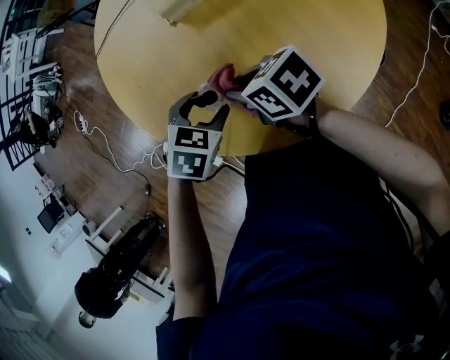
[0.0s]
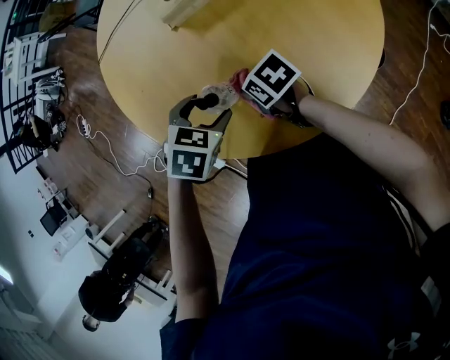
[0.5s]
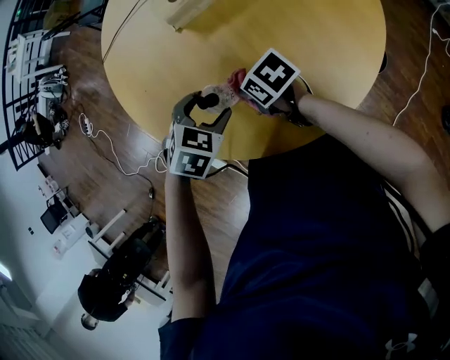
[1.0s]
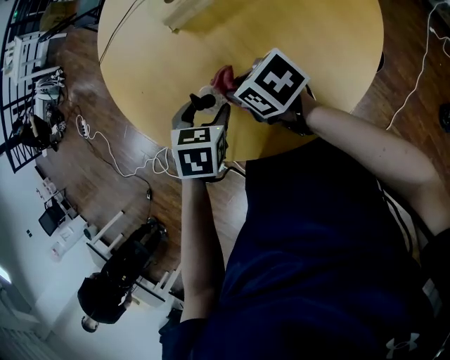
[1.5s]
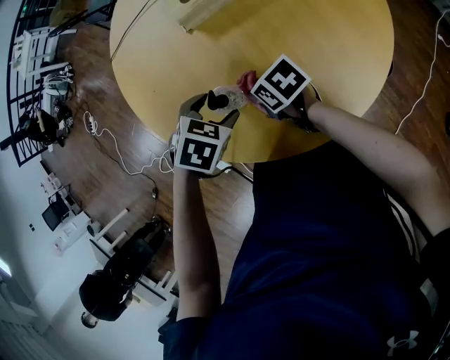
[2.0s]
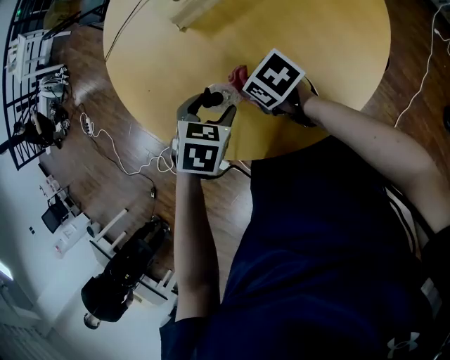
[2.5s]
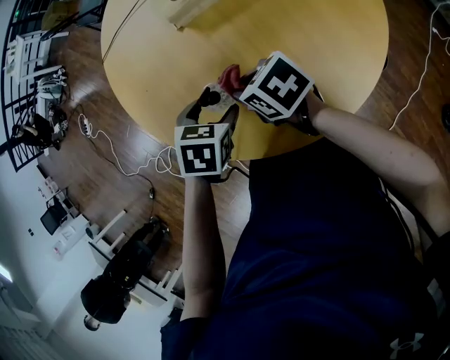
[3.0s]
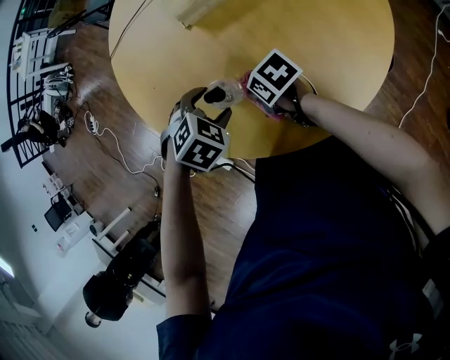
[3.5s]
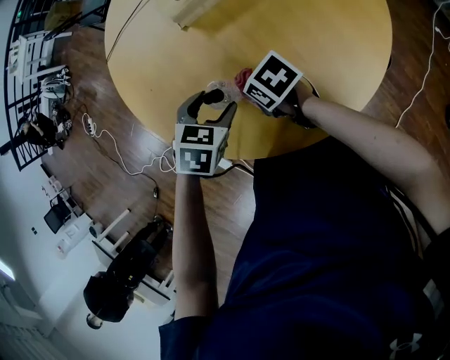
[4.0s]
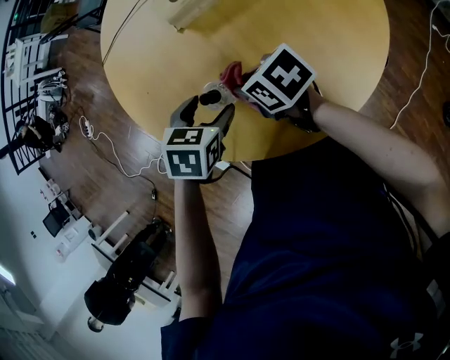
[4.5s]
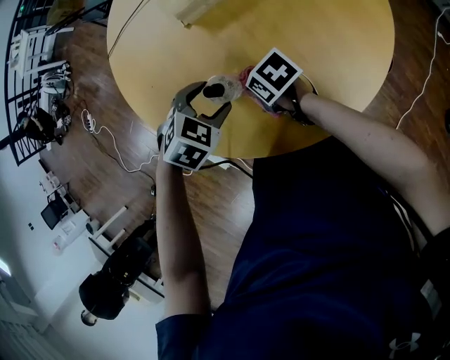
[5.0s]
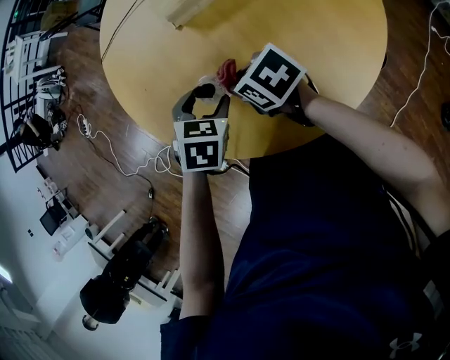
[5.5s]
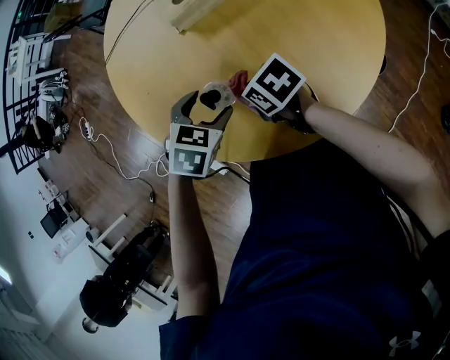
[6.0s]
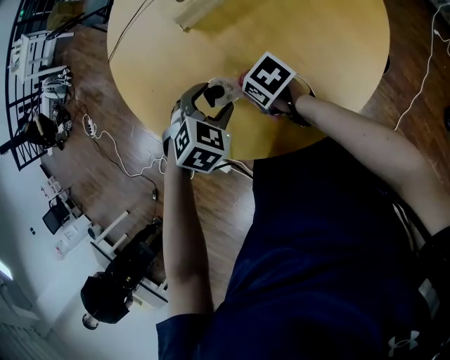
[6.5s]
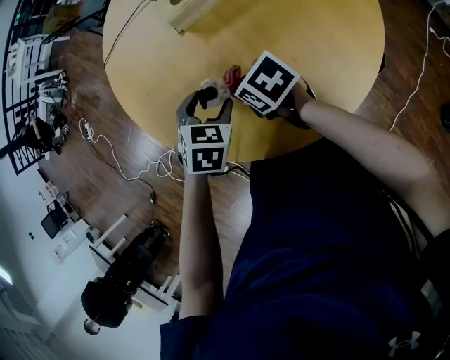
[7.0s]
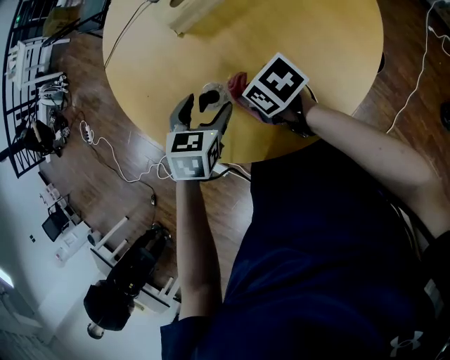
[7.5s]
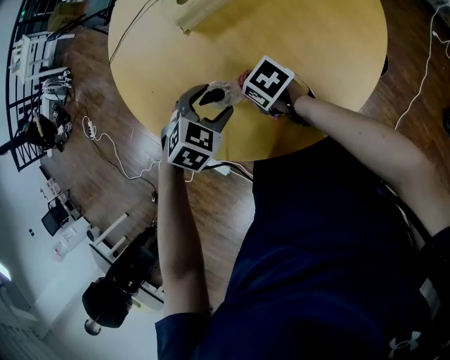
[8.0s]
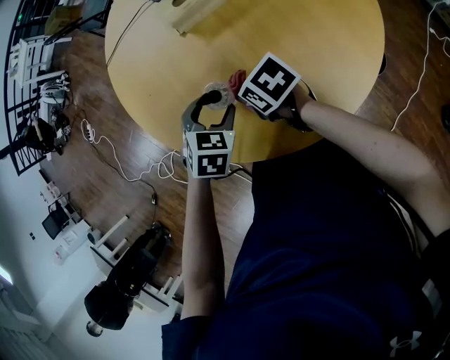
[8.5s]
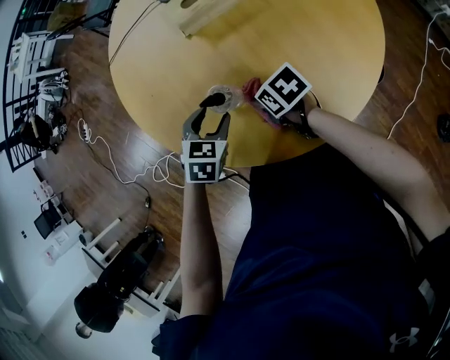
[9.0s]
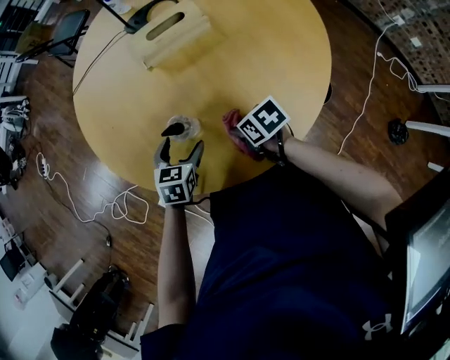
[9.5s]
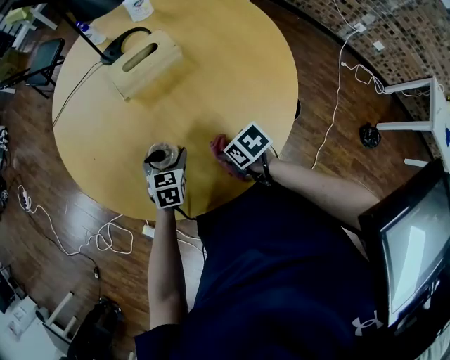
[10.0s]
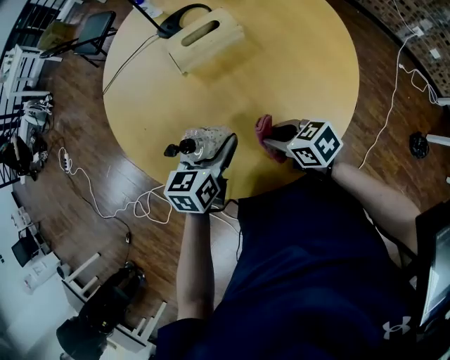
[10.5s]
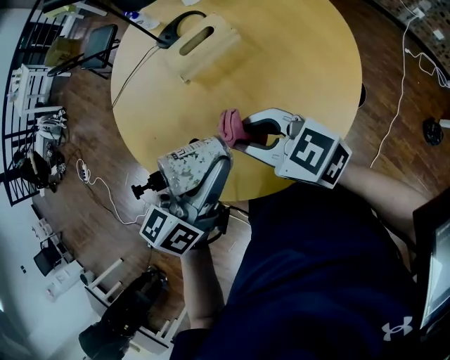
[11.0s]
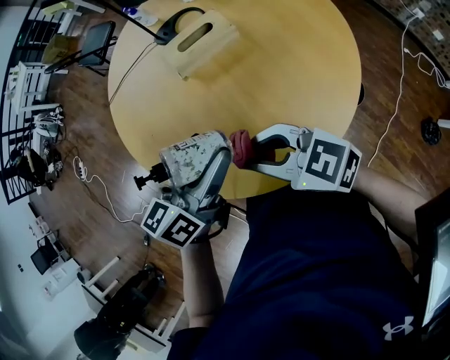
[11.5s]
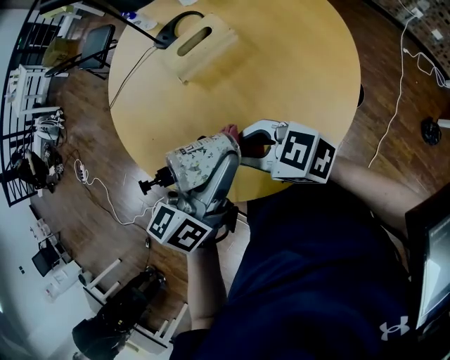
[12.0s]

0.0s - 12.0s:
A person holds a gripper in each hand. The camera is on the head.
0.0s - 2.0s: The right gripper swings up and down, approximately 10 cm each way, with 2 reversals.
2.0s - 4.0s: The right gripper reaches roughly 5 cm upward, then returns.
4.0s - 6.0s: The right gripper swings up and down, about 10 cm each way, with 3 reversals.
6.0s - 8.0s: The right gripper goes up and down, approximately 5 cm each way, reversing 2 times; the left gripper swivels roughly 20 degrees.
8.0s - 10.0s: The right gripper heads backward and to the right, covering approximately 10 cm. Meanwhile the left gripper is displaced downward by about 5 cm, and turns by some 40 degrees.
10.0s - 12.0s: The right gripper travels upward and to the left by about 25 cm, and tilts its fingers about 40 degrees upward. Meanwhile the left gripper goes roughly 30 cm upward, and points its fingers some 40 degrees further upward.

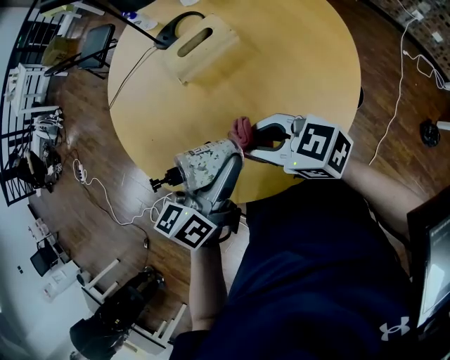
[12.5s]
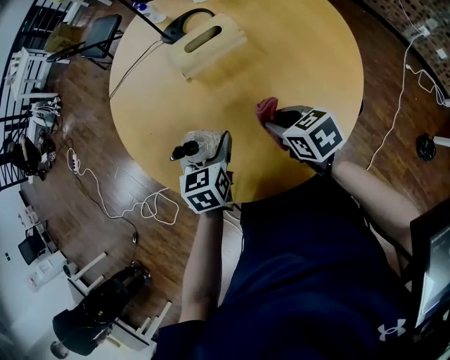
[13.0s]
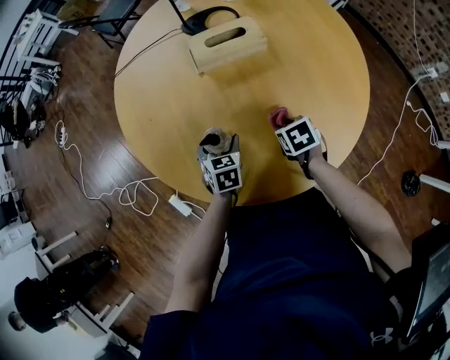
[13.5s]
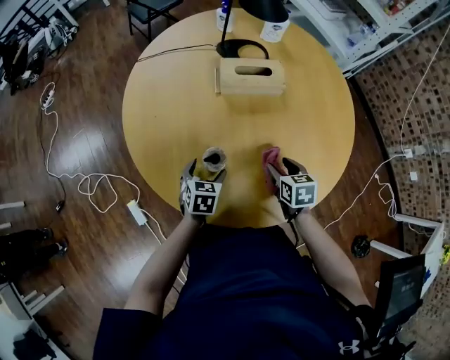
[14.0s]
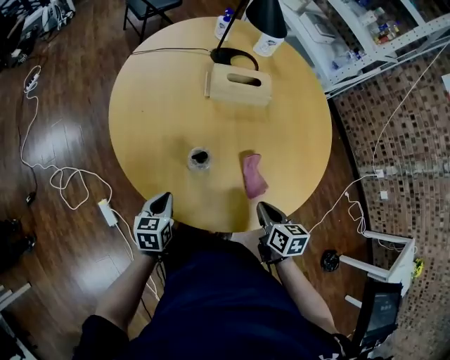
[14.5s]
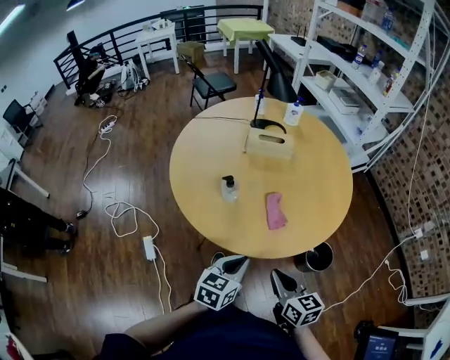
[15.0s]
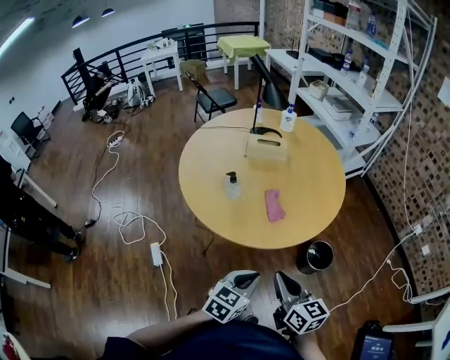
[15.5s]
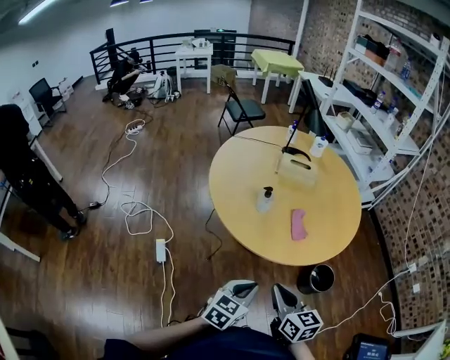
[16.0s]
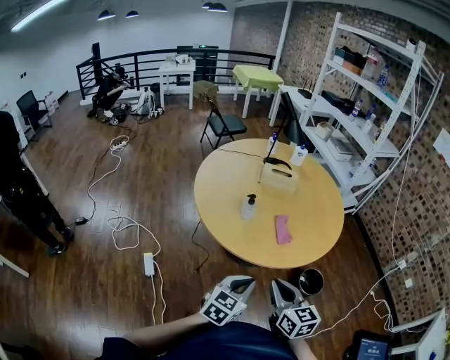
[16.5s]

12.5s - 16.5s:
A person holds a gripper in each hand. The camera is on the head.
12.5s - 14.5s: The right gripper goes approximately 20 cm downward, to the right and backward, turns by approximately 40 degrees, and opens, then closes once more. The left gripper moves downward and to the left, approximately 25 cm, rotates approximately 40 degrees, and closes its fingers.
14.5s - 16.5s: The right gripper travels backward and upward by some 30 cm, and rotates some 30 degrees. The left gripper heads backward, upward and to the right, covering about 35 cm, and turns by roughly 30 degrees.

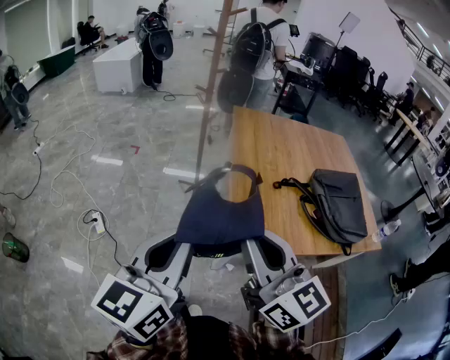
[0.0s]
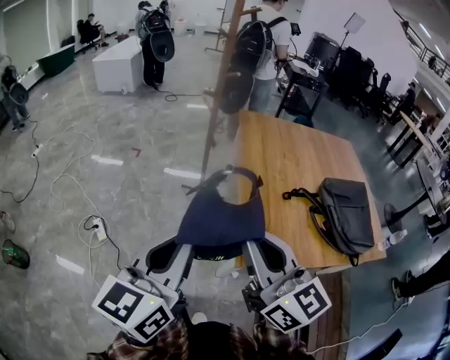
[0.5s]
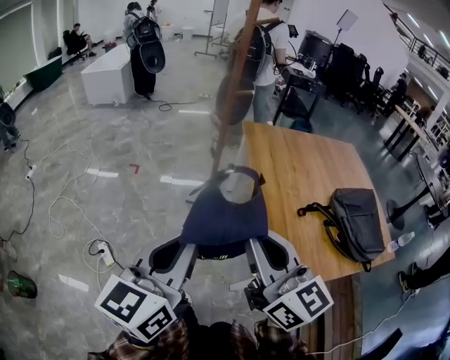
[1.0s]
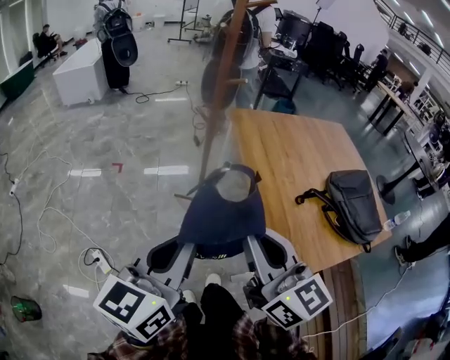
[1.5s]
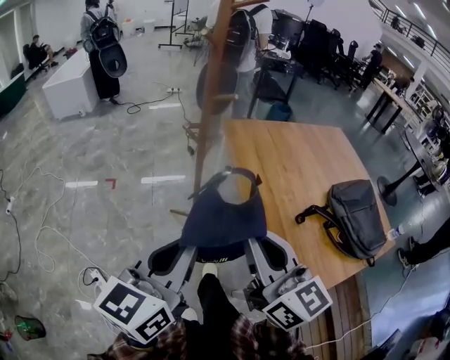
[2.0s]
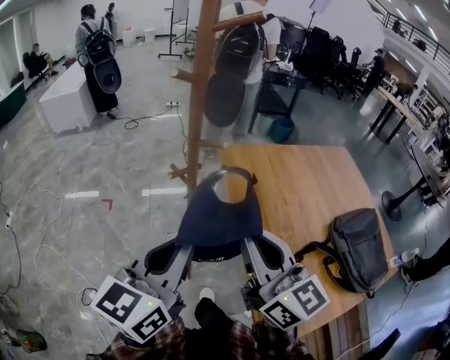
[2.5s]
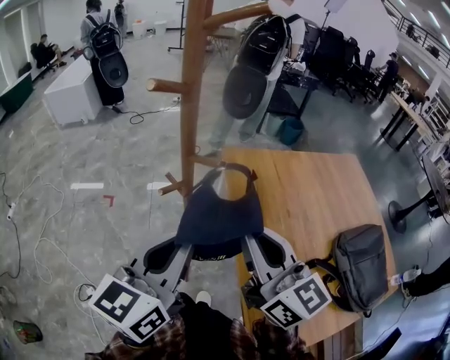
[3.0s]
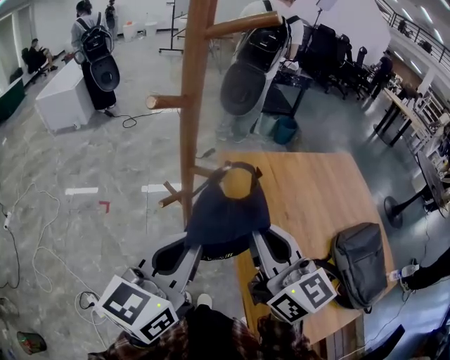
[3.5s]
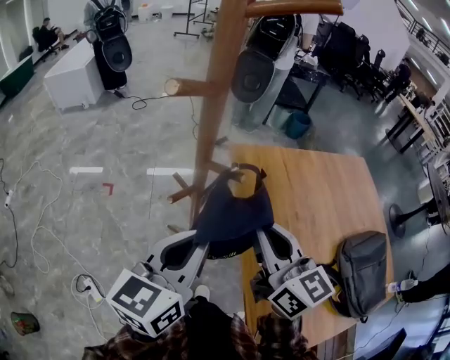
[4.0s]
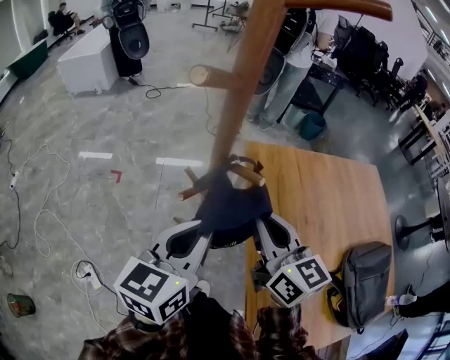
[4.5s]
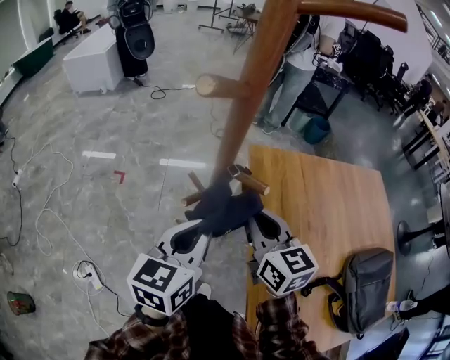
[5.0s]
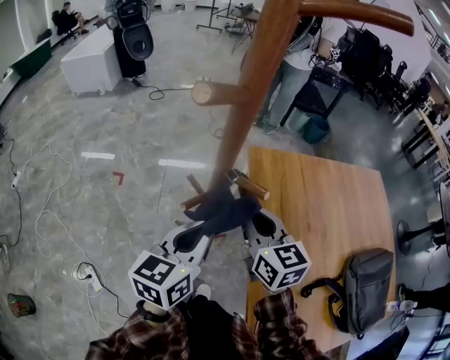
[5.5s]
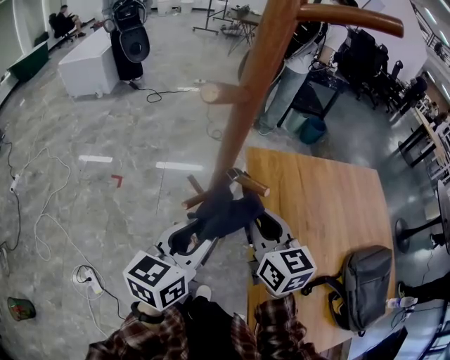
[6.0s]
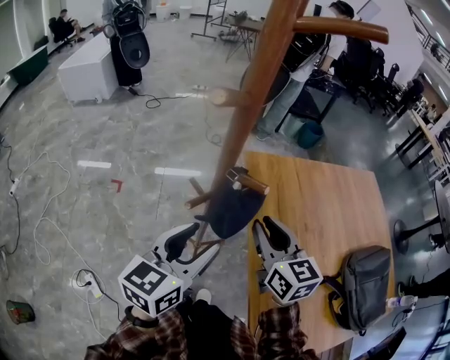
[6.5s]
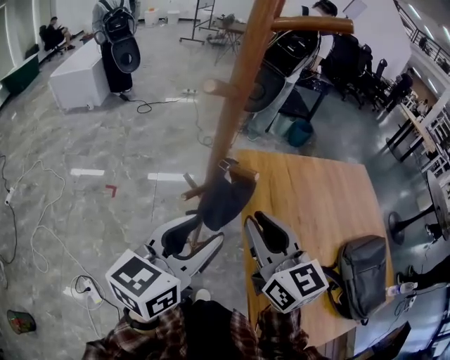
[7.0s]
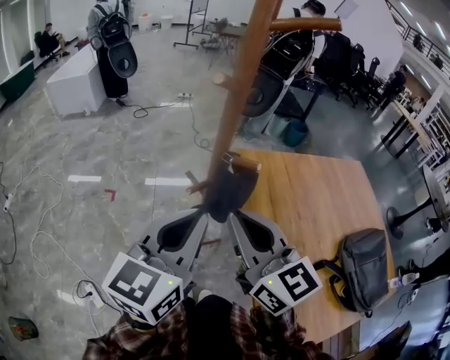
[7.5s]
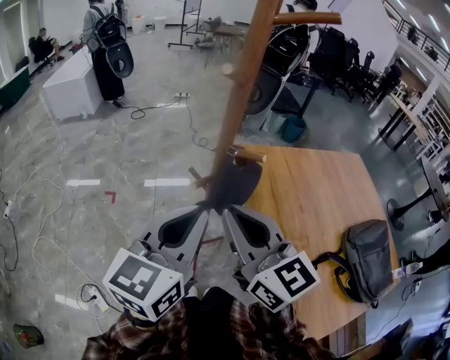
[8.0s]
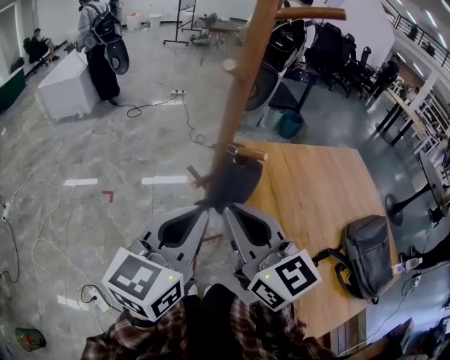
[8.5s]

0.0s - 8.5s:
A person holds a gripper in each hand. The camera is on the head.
0.0s - 2.0s: The grippers both shift forward by about 35 cm.
2.0s - 4.0s: Both grippers move forward, approximately 30 cm.
4.0s - 6.5s: The right gripper heads downward and forward, covering approximately 10 cm. The left gripper moves downward, roughly 5 cm, and opens up.
6.5s - 8.5s: The left gripper moves upward, approximately 10 cm, and closes. The right gripper is displaced to the left, upward and backward by approximately 20 cm.

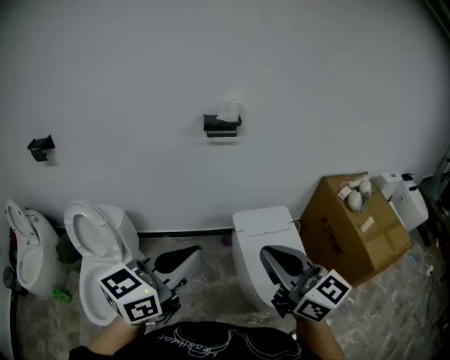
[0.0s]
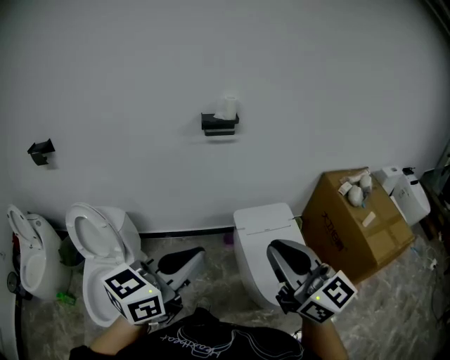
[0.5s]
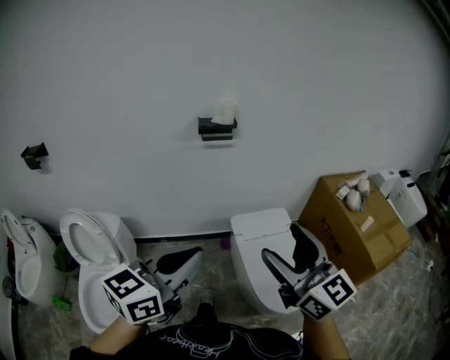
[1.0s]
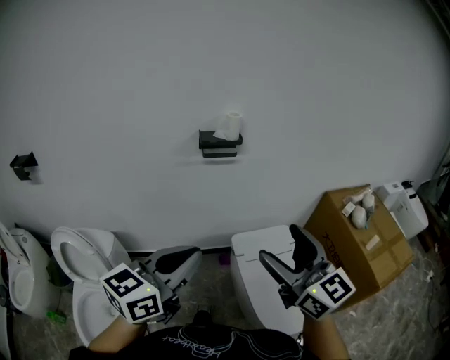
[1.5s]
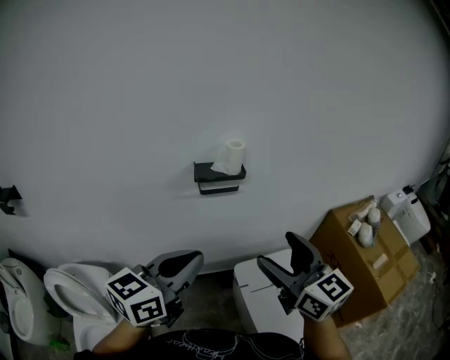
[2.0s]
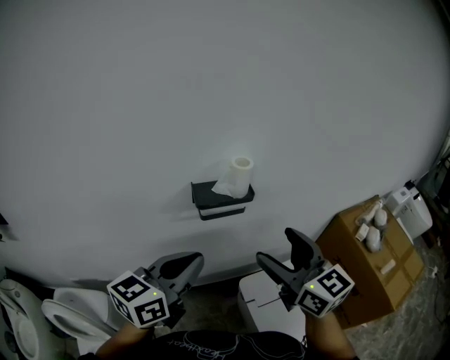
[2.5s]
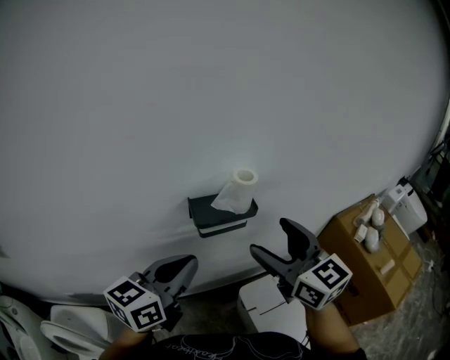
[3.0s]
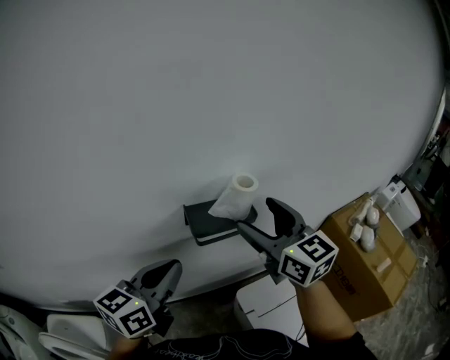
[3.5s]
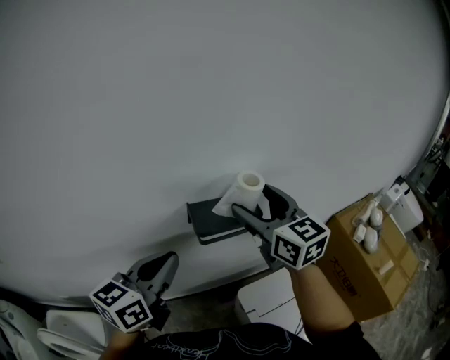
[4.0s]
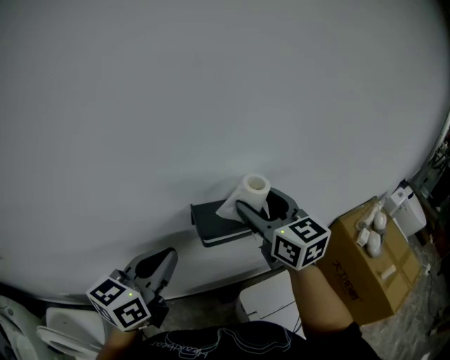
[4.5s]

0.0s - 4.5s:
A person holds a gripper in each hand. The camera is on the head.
0.0s - 2.0s: Both grippers move forward, about 30 cm. The right gripper opens.
2.0s - 4.5s: The right gripper moves forward, some 30 cm. The left gripper shifts approximately 25 cm forward and to the left.
